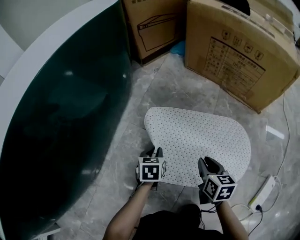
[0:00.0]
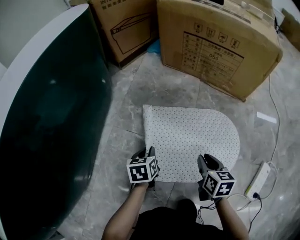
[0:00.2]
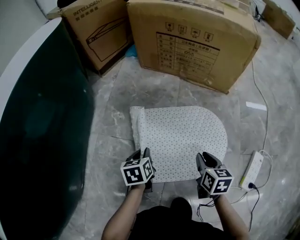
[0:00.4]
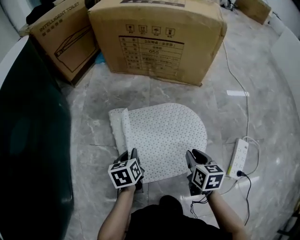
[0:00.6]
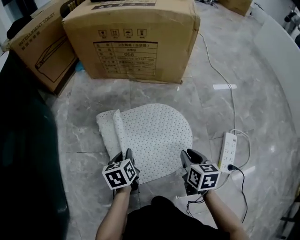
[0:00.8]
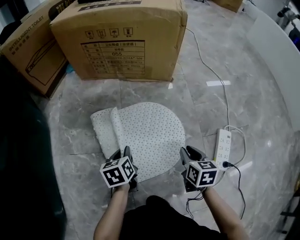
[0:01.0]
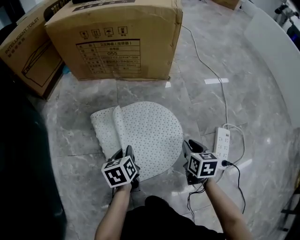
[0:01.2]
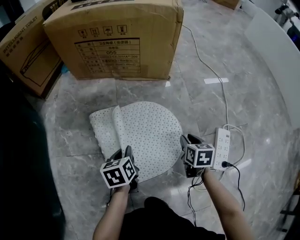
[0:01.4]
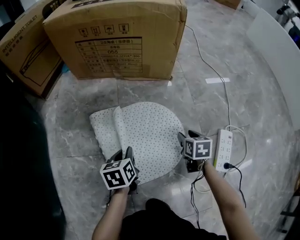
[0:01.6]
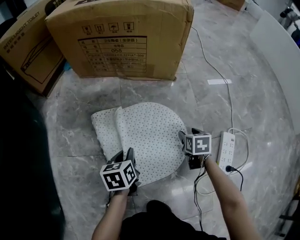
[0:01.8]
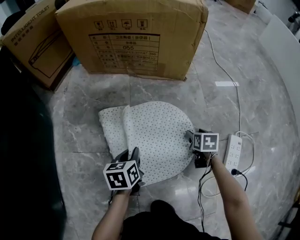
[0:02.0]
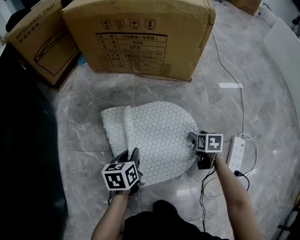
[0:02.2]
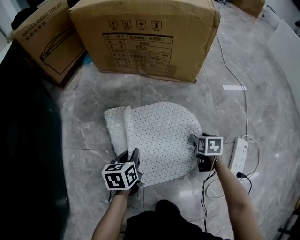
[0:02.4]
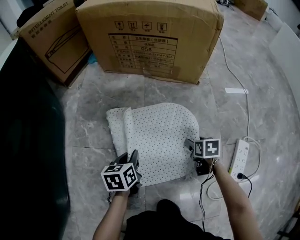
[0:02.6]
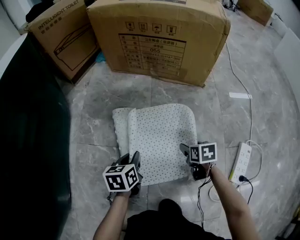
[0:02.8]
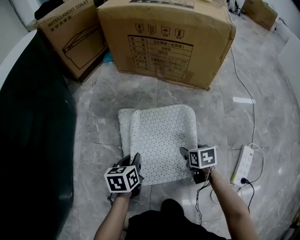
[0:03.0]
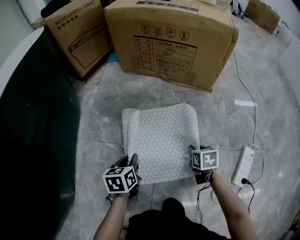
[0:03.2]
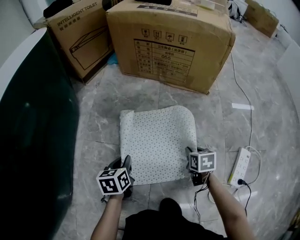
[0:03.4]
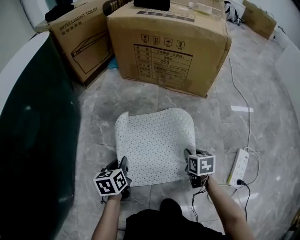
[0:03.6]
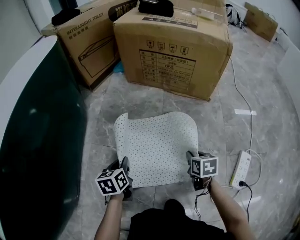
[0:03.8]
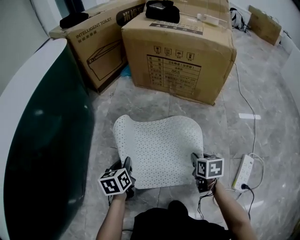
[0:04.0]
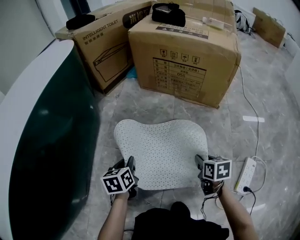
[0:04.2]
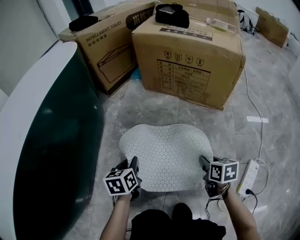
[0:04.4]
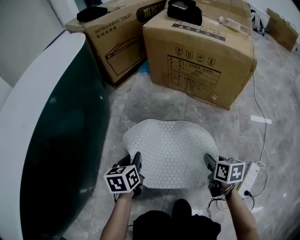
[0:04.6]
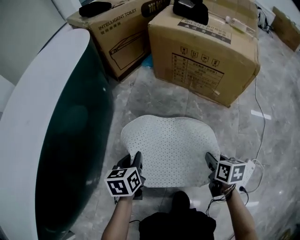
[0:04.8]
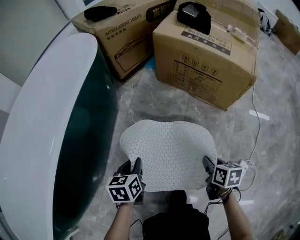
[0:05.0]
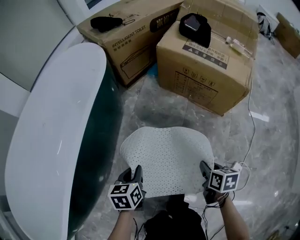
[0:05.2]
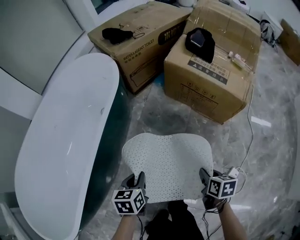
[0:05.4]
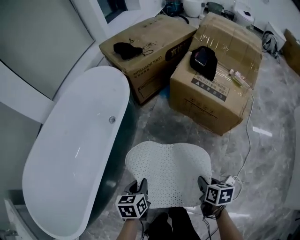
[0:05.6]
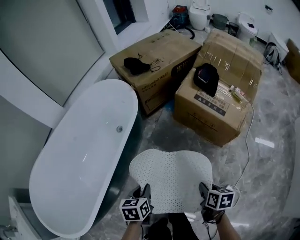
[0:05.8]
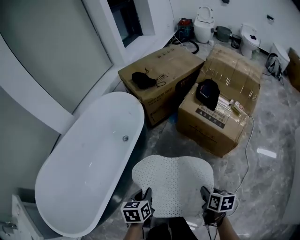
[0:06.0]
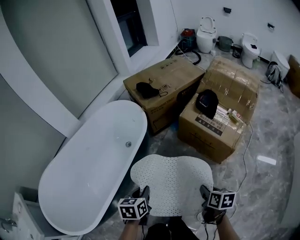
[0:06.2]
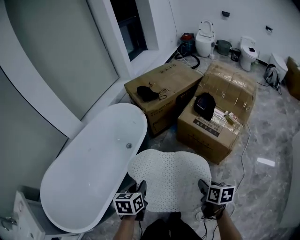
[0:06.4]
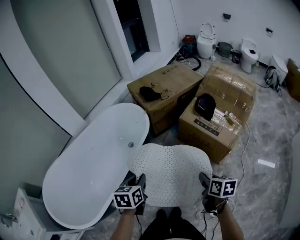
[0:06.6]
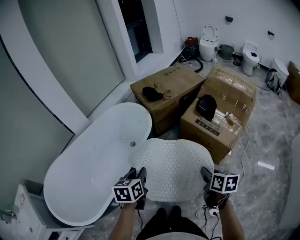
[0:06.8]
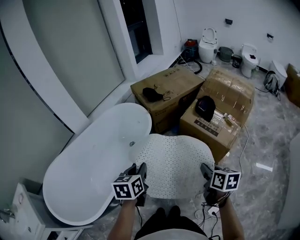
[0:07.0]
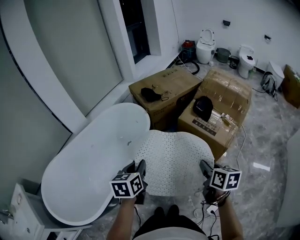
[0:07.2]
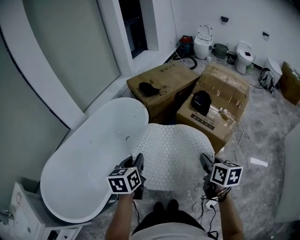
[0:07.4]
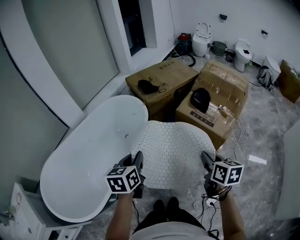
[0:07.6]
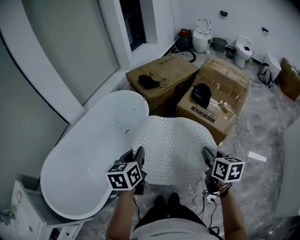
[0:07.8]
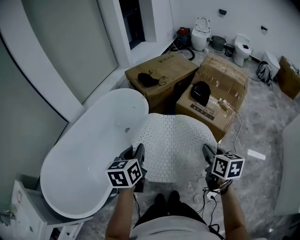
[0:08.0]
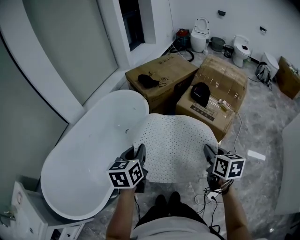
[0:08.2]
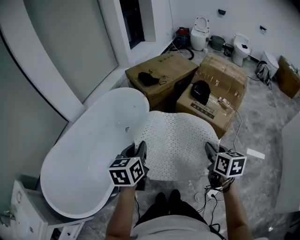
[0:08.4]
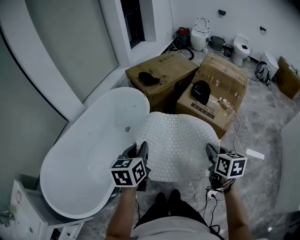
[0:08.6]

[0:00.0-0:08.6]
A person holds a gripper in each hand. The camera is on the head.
0:00.0 to 0:01.4: The right gripper changes place by approximately 30 cm, and rotates approximately 30 degrees. The left gripper shifts by about 25 cm, and turns by about 20 degrees.
0:01.4 to 0:02.8: The grippers both shift to the left by some 10 cm. The right gripper changes its angle by roughly 20 degrees, and opens its fingers.
0:02.8 to 0:04.4: The left gripper heads to the left and upward, covering some 15 cm. The right gripper travels upward by roughly 15 cm, and closes.
0:04.4 to 0:05.8: The grippers both shift upward by roughly 40 cm.
0:05.8 to 0:07.2: Both grippers move upward, approximately 30 cm. The right gripper changes its angle by about 20 degrees.
0:07.2 to 0:08.6: There are only small adjustments of the grippers.

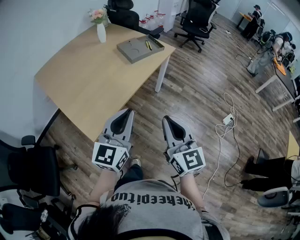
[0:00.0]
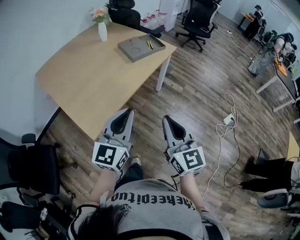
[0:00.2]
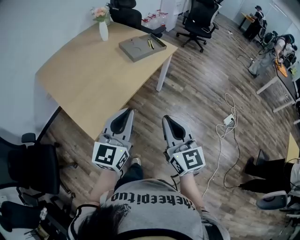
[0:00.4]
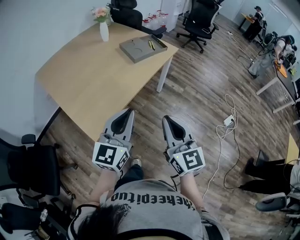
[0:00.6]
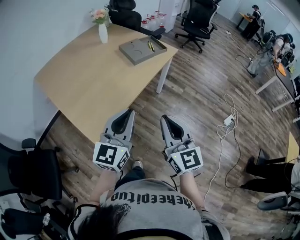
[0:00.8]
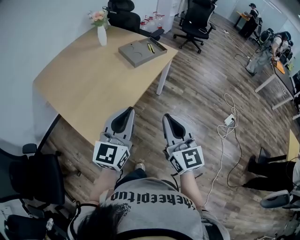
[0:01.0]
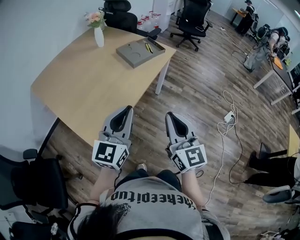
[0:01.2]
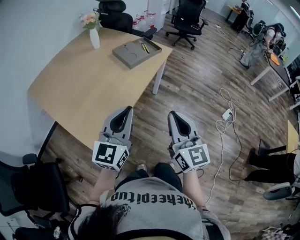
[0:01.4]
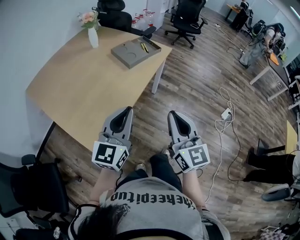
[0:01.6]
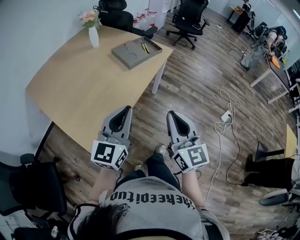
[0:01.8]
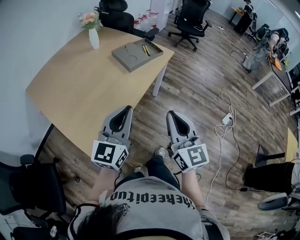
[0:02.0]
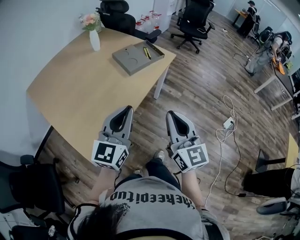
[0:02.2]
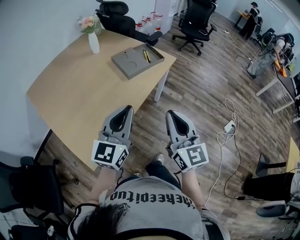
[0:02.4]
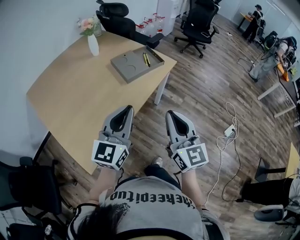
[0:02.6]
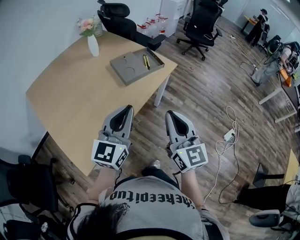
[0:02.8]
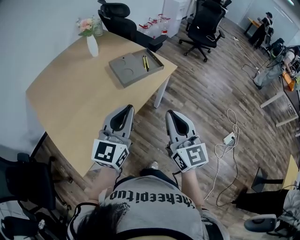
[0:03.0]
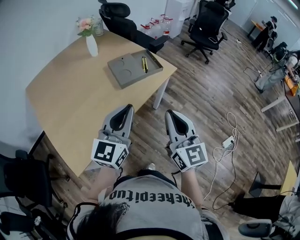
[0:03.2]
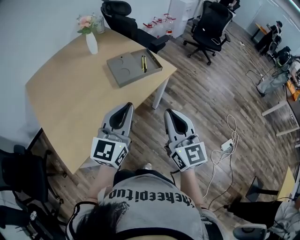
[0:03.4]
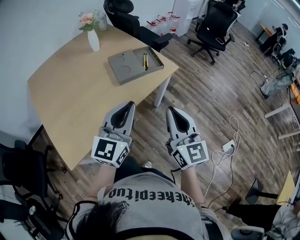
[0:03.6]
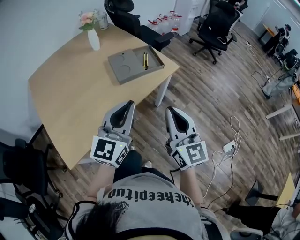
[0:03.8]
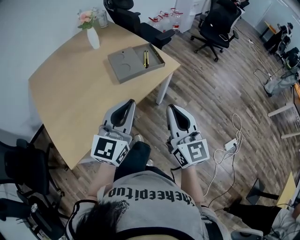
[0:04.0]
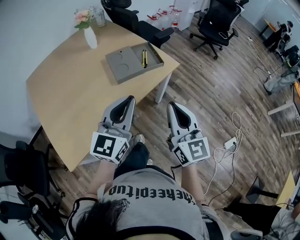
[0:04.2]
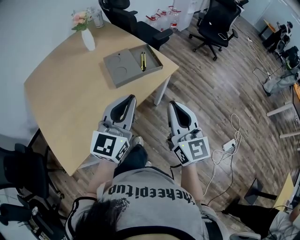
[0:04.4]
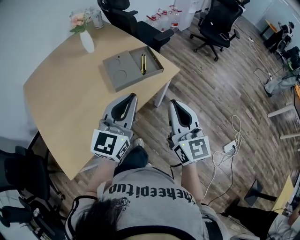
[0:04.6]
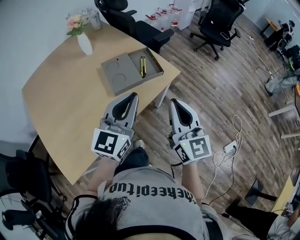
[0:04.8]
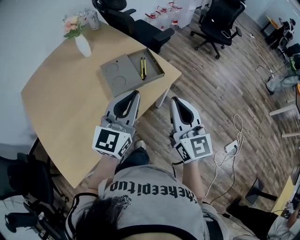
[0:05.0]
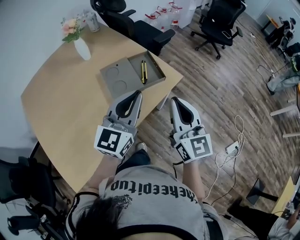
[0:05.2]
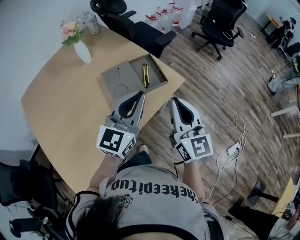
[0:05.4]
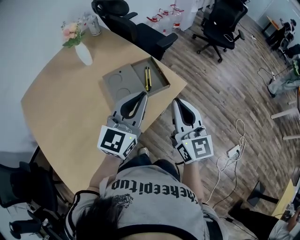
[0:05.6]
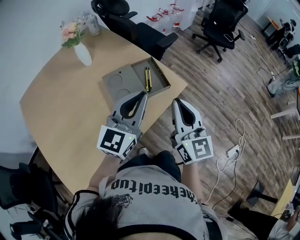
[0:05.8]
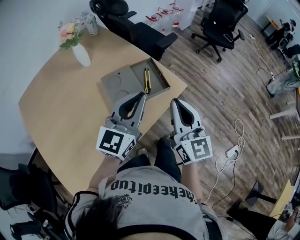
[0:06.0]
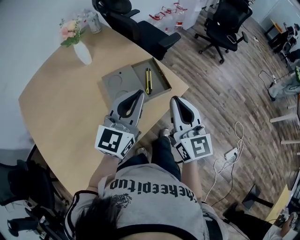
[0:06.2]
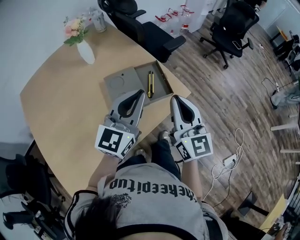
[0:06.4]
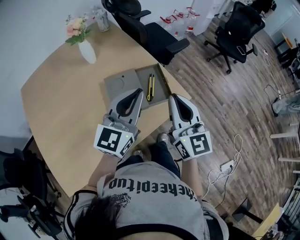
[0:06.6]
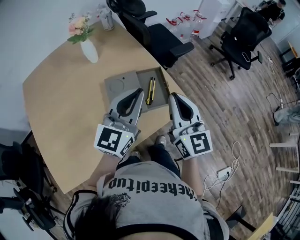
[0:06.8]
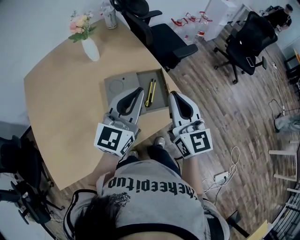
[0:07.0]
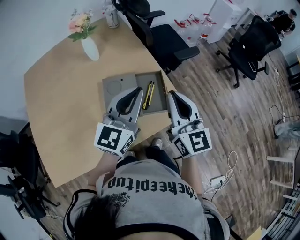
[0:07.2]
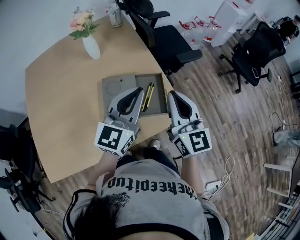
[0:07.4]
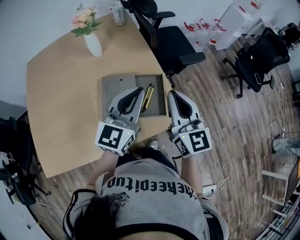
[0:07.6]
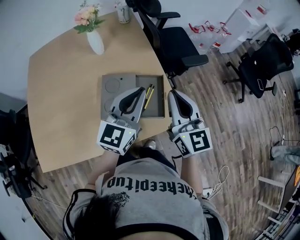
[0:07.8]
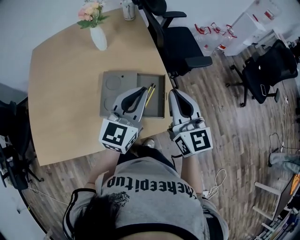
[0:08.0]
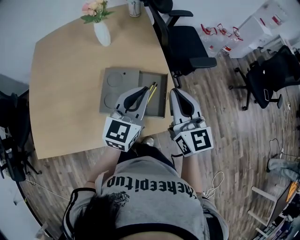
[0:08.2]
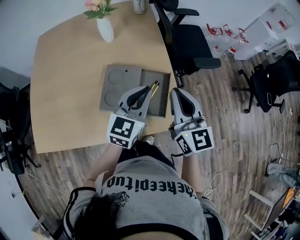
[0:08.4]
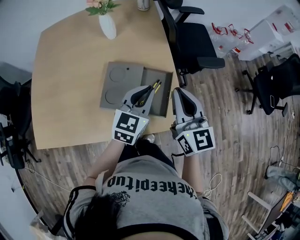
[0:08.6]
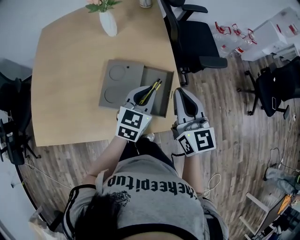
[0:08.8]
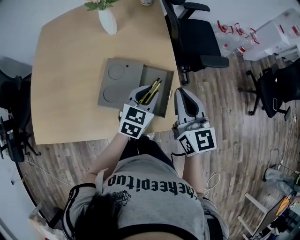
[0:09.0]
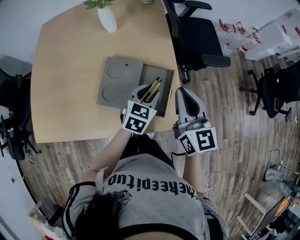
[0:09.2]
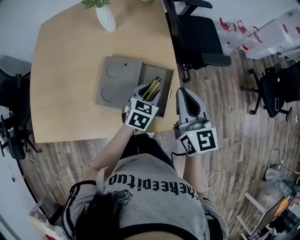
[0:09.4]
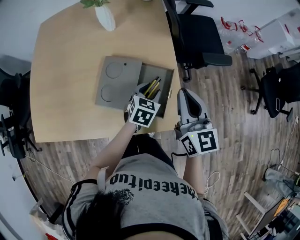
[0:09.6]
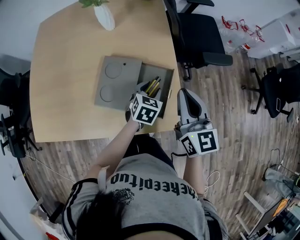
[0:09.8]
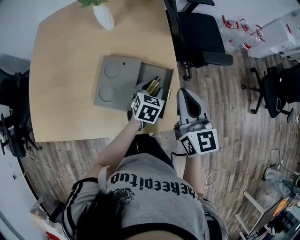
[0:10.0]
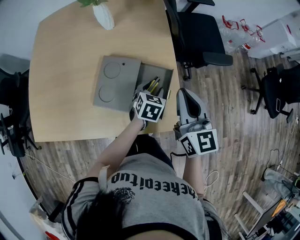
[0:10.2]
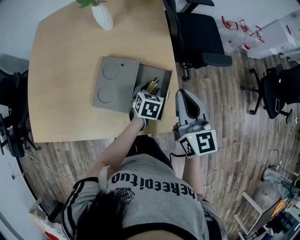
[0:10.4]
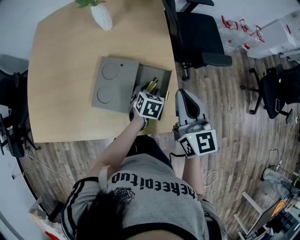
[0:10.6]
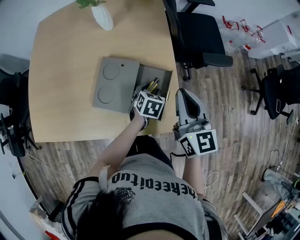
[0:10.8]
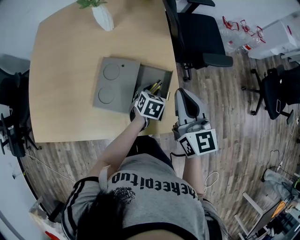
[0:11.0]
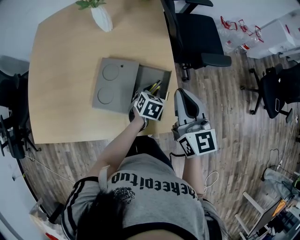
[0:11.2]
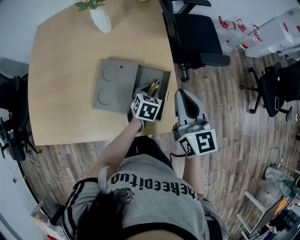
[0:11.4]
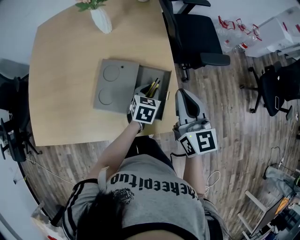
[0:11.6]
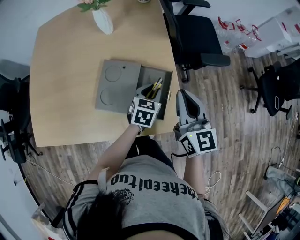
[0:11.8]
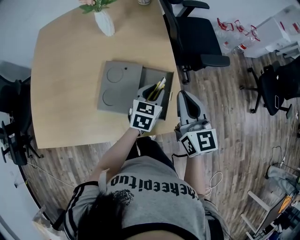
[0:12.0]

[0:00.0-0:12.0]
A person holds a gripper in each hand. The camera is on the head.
0:00.0 to 0:01.6: The grippers both shift forward by approximately 5 cm.
0:01.6 to 0:03.0: Both grippers travel together forward and to the right, about 20 cm.
0:03.0 to 0:04.4: Both grippers travel together forward and to the right, about 15 cm.
0:04.4 to 0:06.0: The two grippers go roughly 20 cm forward.
0:06.0 to 0:07.6: The grippers both shift forward by some 15 cm. The right gripper turns by approximately 30 degrees. The left gripper changes its angle by roughly 20 degrees.
0:07.6 to 0:09.0: The left gripper travels downward by roughly 20 cm, and tilts its fingers some 30 degrees downward; the right gripper heads downward and forward, covering approximately 10 cm.
0:09.0 to 0:10.4: The left gripper goes approximately 15 cm downward, rotates roughly 30 degrees, and opens its fingers.
0:10.4 to 0:12.0: The left gripper goes about 10 cm upward, and rotates about 20 degrees.

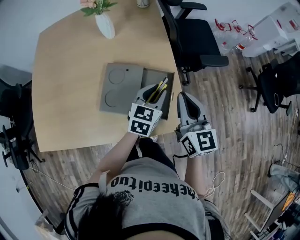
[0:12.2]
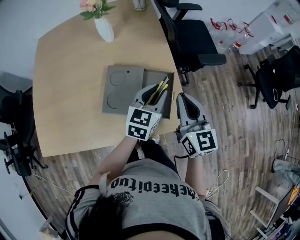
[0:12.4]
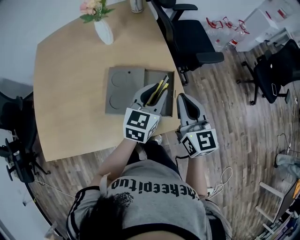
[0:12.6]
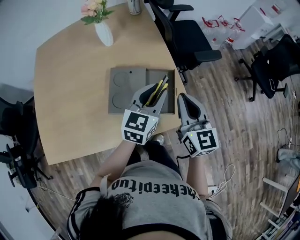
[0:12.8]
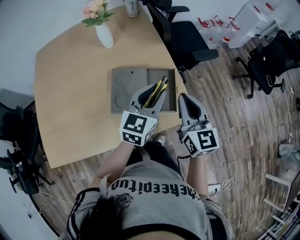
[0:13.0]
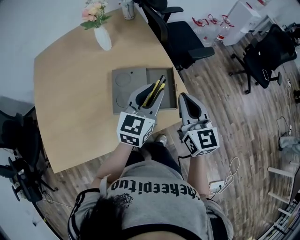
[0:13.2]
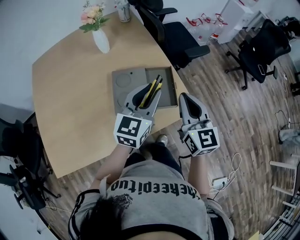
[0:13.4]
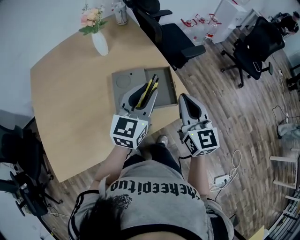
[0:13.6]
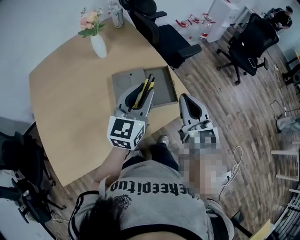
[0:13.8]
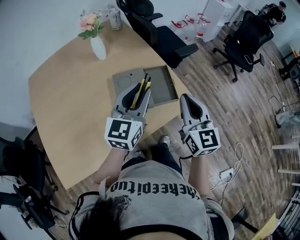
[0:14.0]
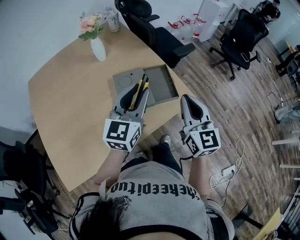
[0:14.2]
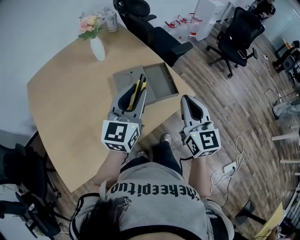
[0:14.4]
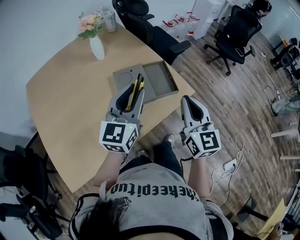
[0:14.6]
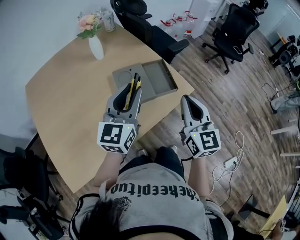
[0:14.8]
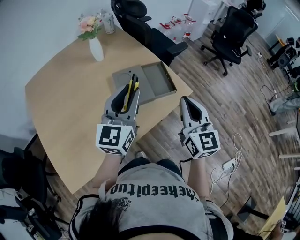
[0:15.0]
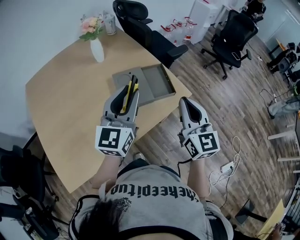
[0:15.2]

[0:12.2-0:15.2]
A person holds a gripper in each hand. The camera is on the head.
0:12.2 to 0:13.8: The right gripper moves backward and upward, approximately 15 cm, and rotates some 20 degrees. The left gripper moves upward, backward and to the left, about 25 cm, and rotates some 30 degrees.
0:13.8 to 0:15.2: The right gripper travels backward by about 10 cm. The left gripper heads backward and to the left, covering about 10 cm.
